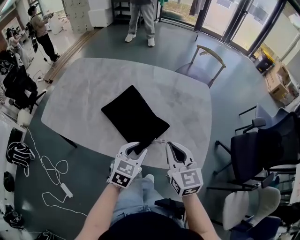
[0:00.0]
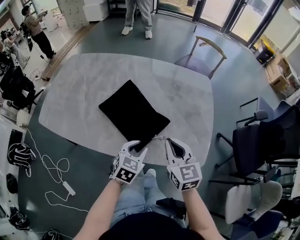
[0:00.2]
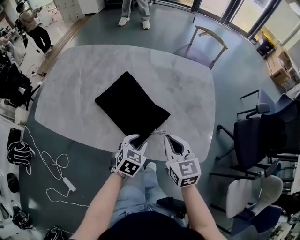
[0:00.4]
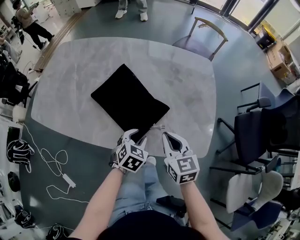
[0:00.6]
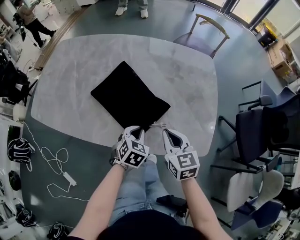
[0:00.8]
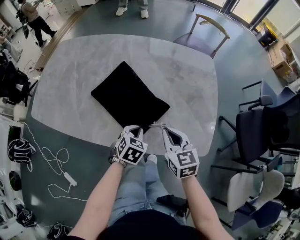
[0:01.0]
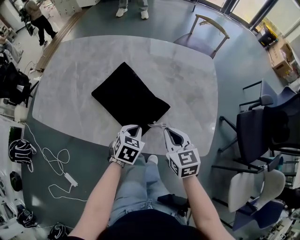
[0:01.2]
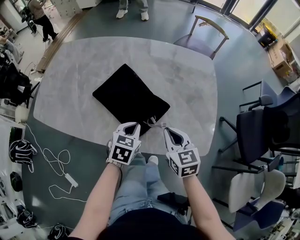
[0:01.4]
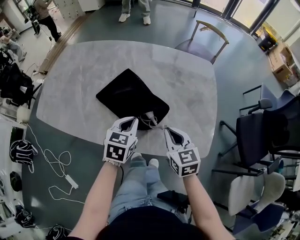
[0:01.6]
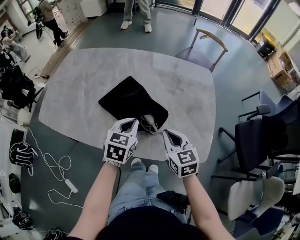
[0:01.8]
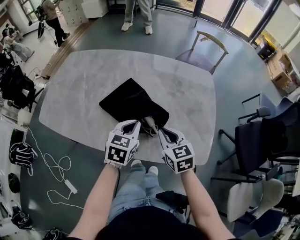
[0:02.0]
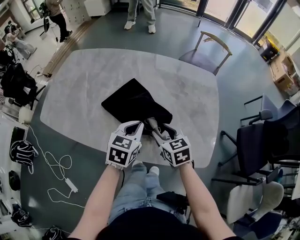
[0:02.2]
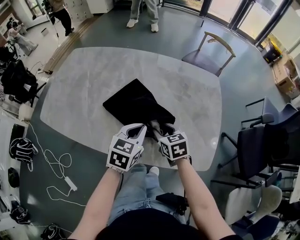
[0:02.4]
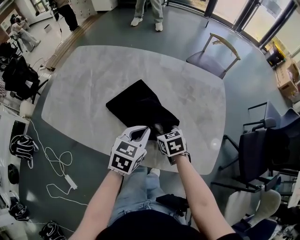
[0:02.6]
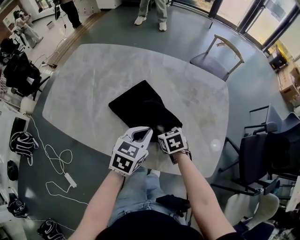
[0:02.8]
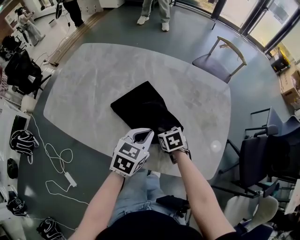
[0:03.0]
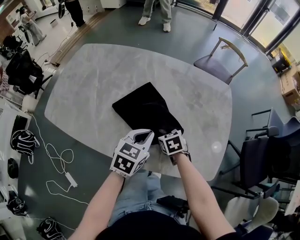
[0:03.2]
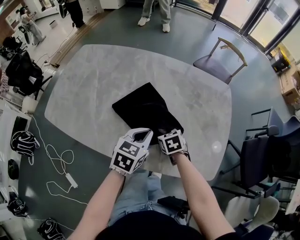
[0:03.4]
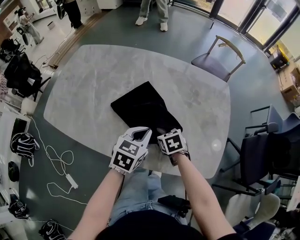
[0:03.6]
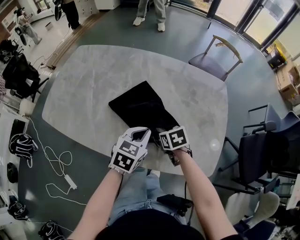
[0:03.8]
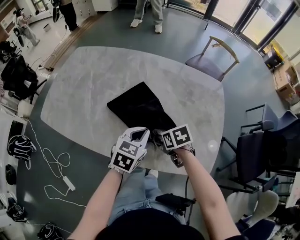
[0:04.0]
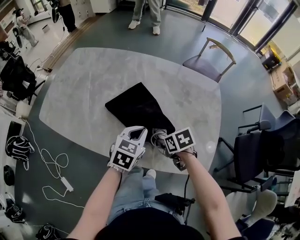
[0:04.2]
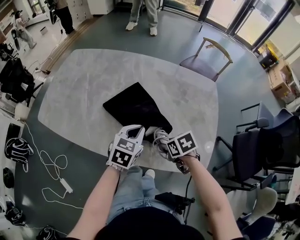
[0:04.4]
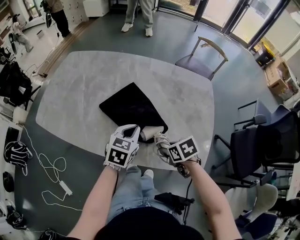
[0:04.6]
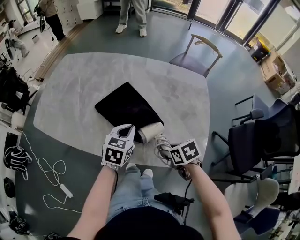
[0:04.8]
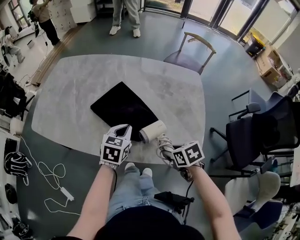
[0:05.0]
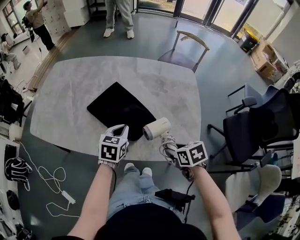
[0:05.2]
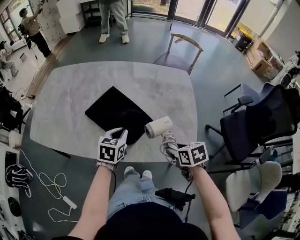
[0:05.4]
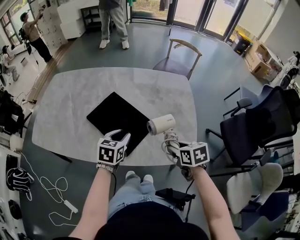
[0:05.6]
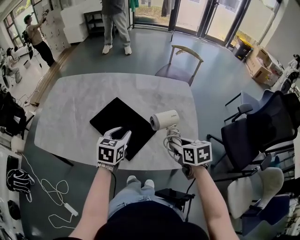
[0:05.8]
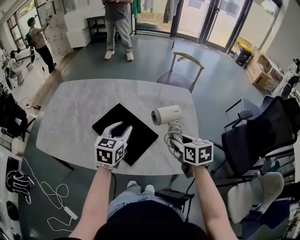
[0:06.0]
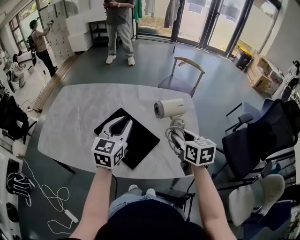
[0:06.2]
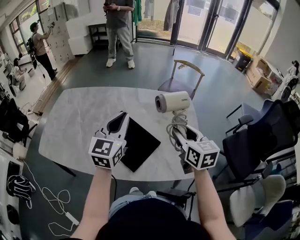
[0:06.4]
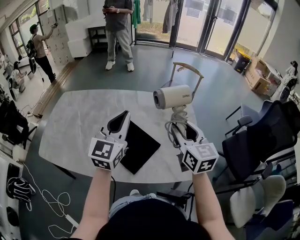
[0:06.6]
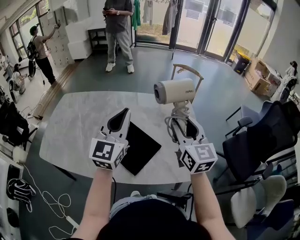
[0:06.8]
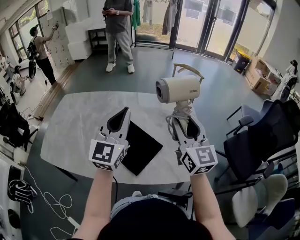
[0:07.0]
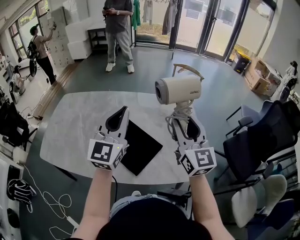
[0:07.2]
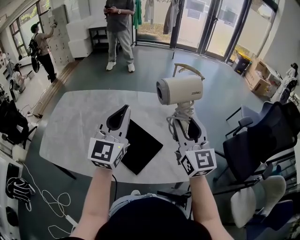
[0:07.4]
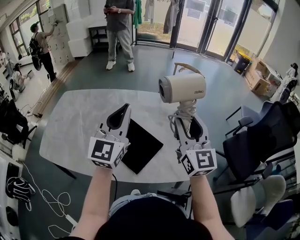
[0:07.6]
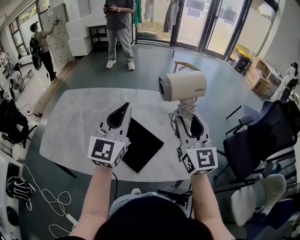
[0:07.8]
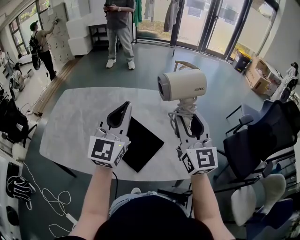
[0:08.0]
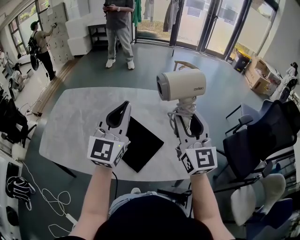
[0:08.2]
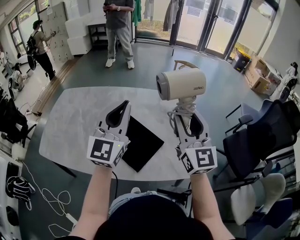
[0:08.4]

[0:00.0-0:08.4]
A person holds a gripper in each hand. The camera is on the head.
0:00.0 to 0:01.4: The left gripper travels downward by roughly 5 cm, and closes up. The right gripper shifts about 10 cm downward.
0:01.4 to 0:02.8: The left gripper shifts some 5 cm upward; the right gripper shifts approximately 15 cm forward, downward and to the left, turns by some 30 degrees, and opens up.
0:02.8 to 0:04.2: The right gripper heads backward, covering about 5 cm.
0:04.2 to 0:05.6: The right gripper moves to the right, backward and upward, roughly 15 cm, and swivels some 20 degrees; the left gripper opens.
0:05.6 to 0:07.0: The right gripper moves upward and forward, roughly 30 cm, and angles its fingers upward, by about 60 degrees, while the left gripper moves upward, some 30 cm, tilts its fingers roughly 50 degrees upward, and closes.
0:07.0 to 0:08.4: There are only small adjustments of the grippers.

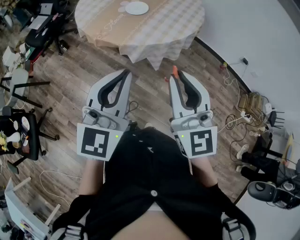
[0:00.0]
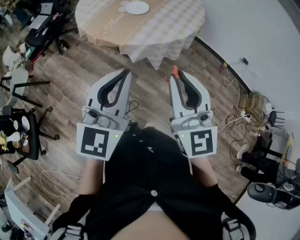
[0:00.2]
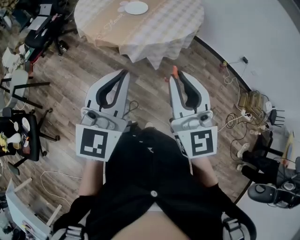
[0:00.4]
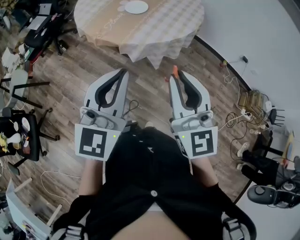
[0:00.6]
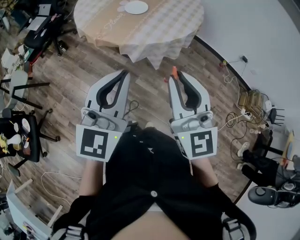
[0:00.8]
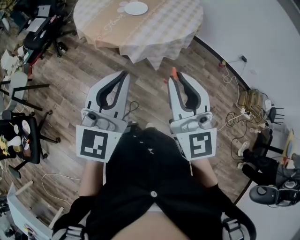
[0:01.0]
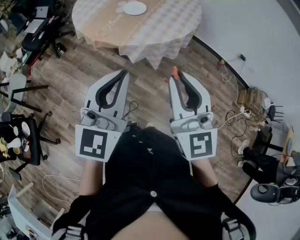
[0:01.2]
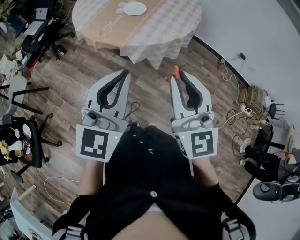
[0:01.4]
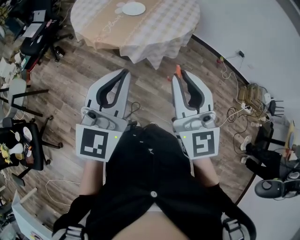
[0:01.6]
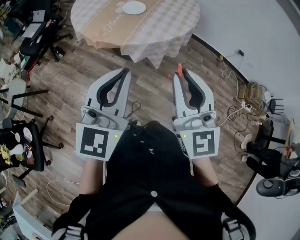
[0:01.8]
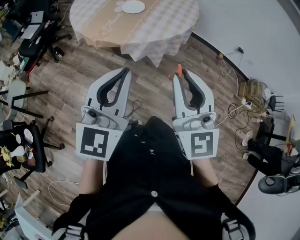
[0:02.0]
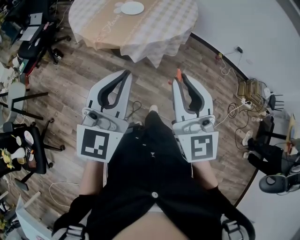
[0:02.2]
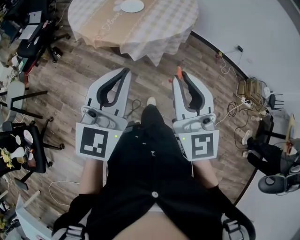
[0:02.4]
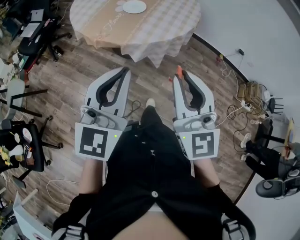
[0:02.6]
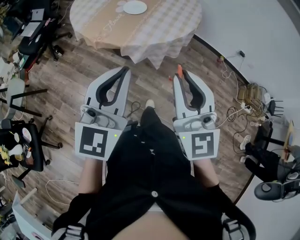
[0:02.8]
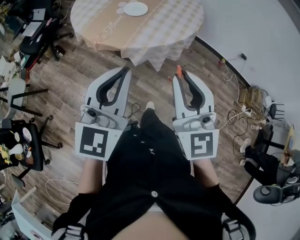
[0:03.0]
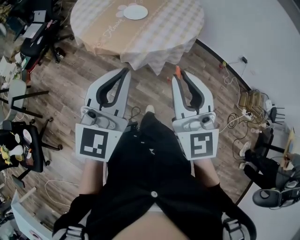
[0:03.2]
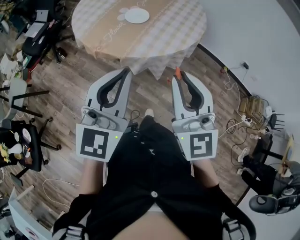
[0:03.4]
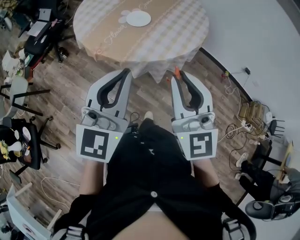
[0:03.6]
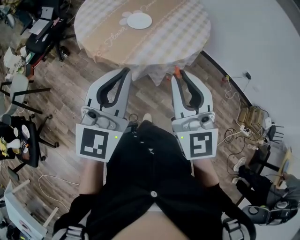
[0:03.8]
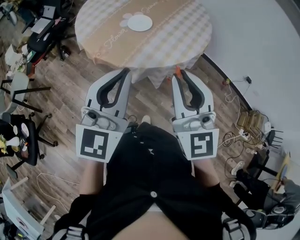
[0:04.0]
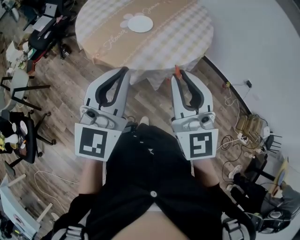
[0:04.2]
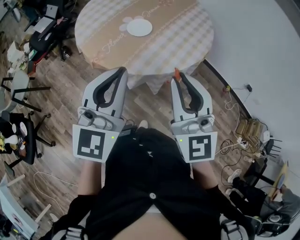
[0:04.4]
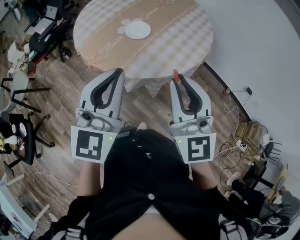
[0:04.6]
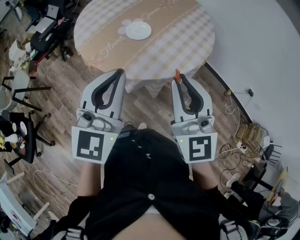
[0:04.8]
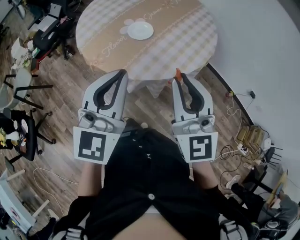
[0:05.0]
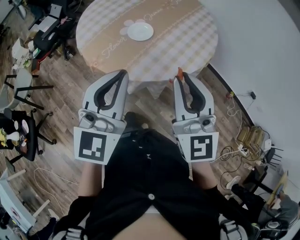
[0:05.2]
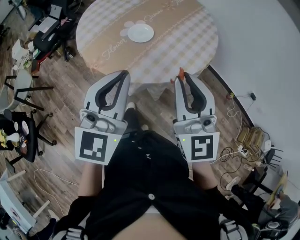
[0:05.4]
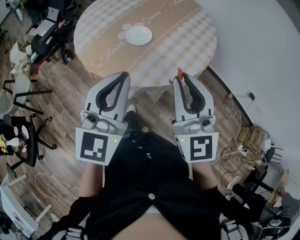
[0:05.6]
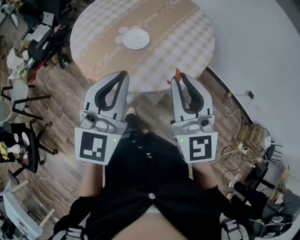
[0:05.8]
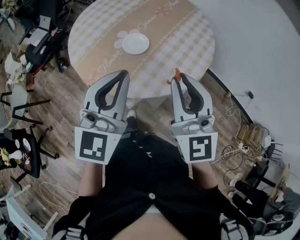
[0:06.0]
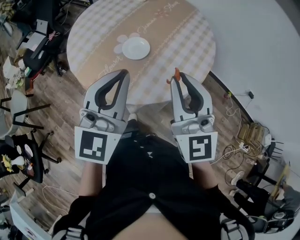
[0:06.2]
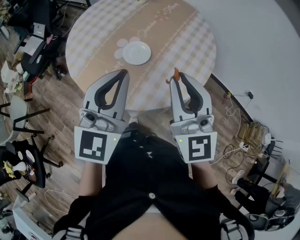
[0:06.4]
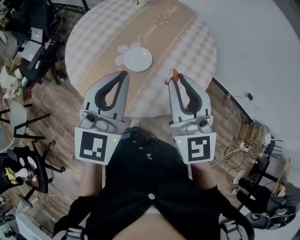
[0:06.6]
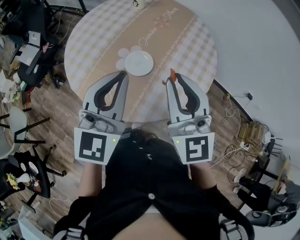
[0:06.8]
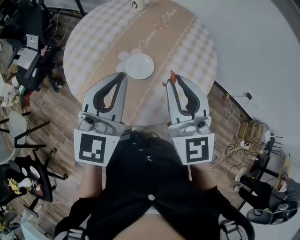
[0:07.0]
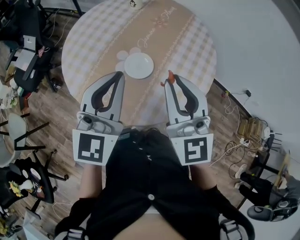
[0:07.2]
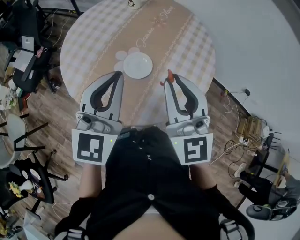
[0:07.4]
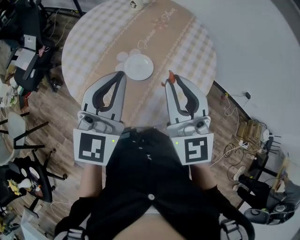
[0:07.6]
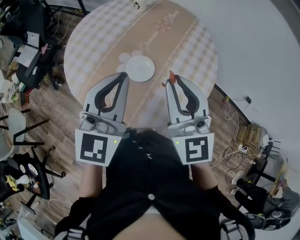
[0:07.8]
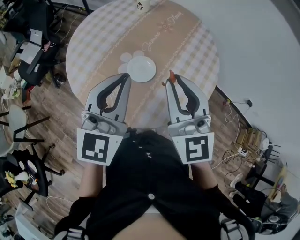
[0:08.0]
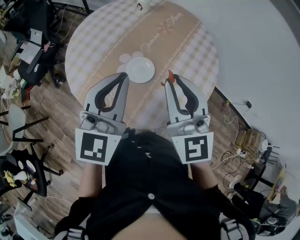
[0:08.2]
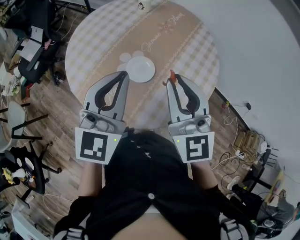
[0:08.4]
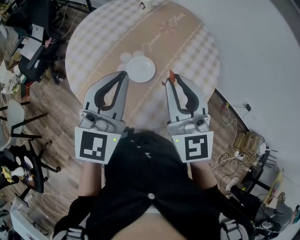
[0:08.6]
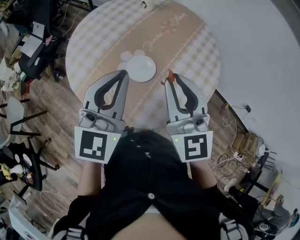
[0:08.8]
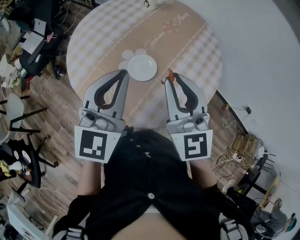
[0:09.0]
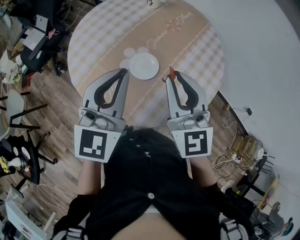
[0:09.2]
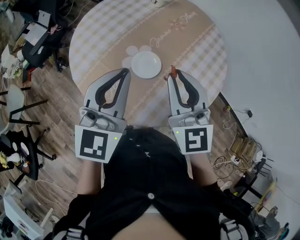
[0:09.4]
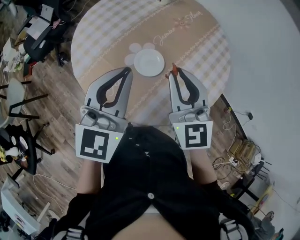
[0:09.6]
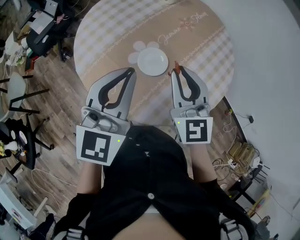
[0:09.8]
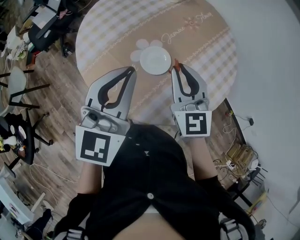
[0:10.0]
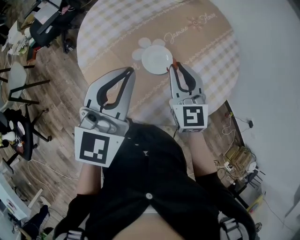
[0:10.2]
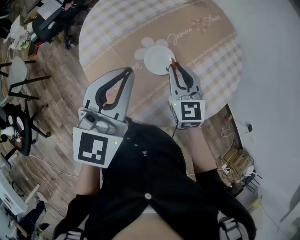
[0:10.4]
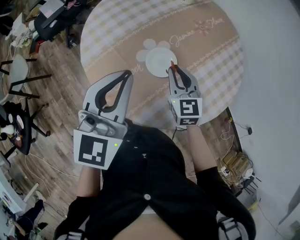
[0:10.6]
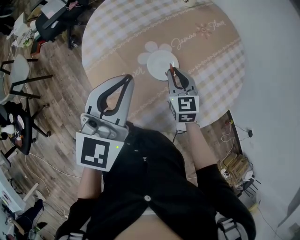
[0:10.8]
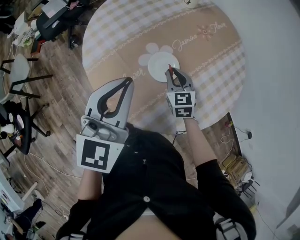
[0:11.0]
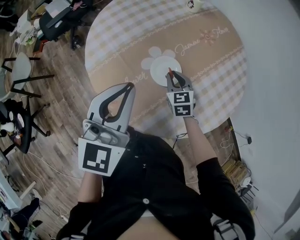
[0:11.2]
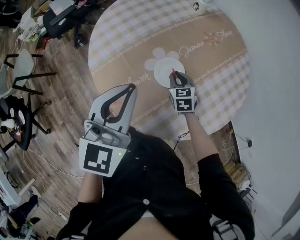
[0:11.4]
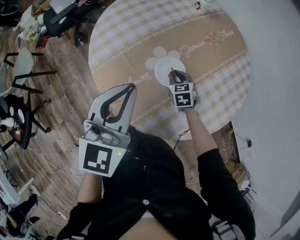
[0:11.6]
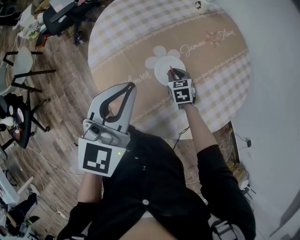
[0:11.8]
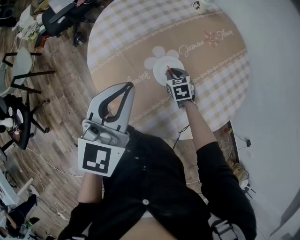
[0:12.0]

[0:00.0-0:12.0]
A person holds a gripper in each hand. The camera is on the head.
0:00.0 to 0:03.0: The grippers move only a little.
0:03.0 to 0:04.4: The left gripper travels forward and to the right by about 15 cm; the right gripper is displaced forward by about 15 cm.
0:04.4 to 0:06.0: Both grippers travel together forward, roughly 10 cm.
0:06.0 to 0:07.6: Both grippers travel together forward and to the left, some 15 cm.
0:07.6 to 0:09.0: There are only small adjustments of the grippers.
0:09.0 to 0:10.4: The right gripper shifts roughly 20 cm downward and forward.
0:10.4 to 0:12.0: The right gripper goes about 20 cm downward, and points its fingers about 30 degrees further downward.

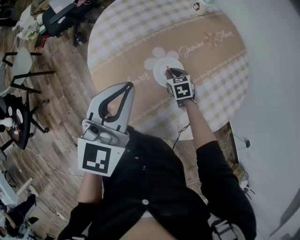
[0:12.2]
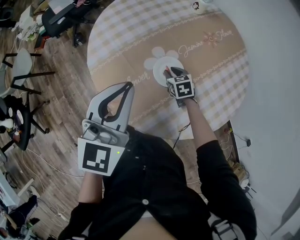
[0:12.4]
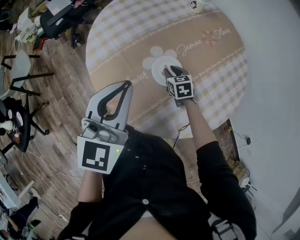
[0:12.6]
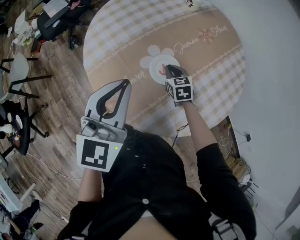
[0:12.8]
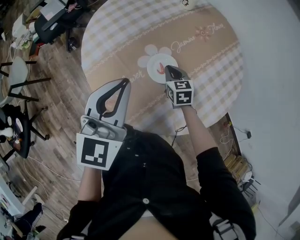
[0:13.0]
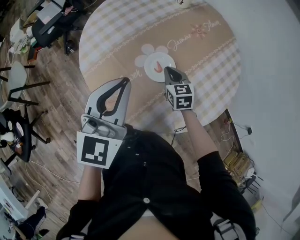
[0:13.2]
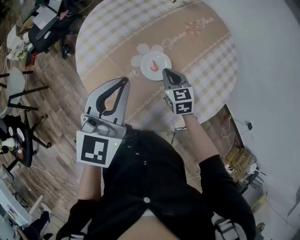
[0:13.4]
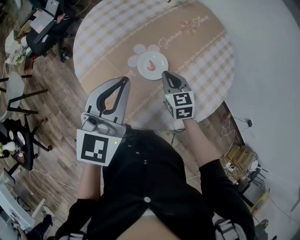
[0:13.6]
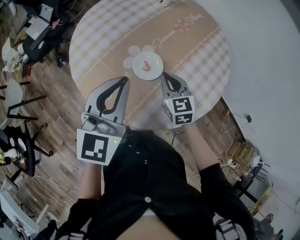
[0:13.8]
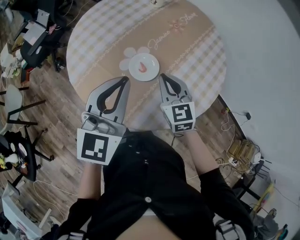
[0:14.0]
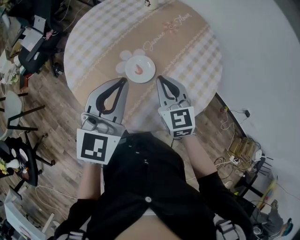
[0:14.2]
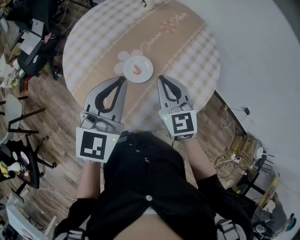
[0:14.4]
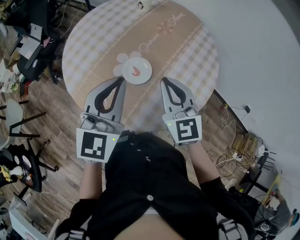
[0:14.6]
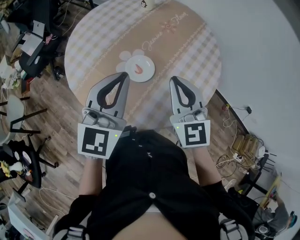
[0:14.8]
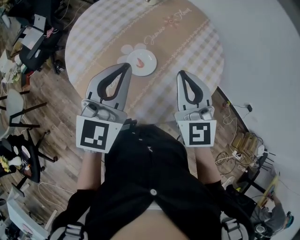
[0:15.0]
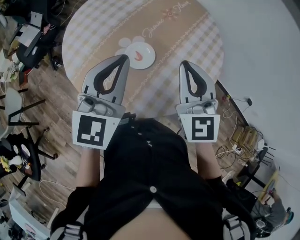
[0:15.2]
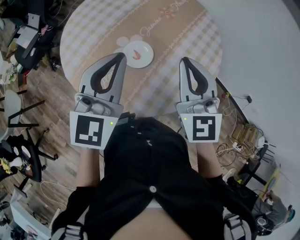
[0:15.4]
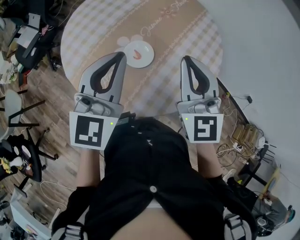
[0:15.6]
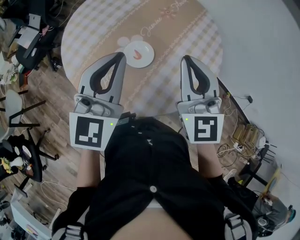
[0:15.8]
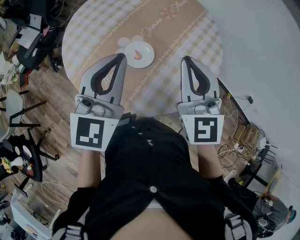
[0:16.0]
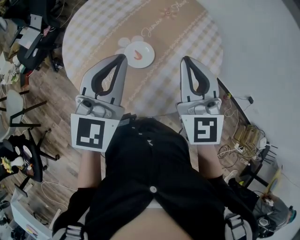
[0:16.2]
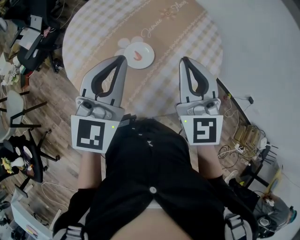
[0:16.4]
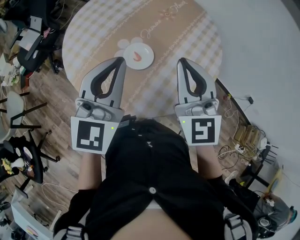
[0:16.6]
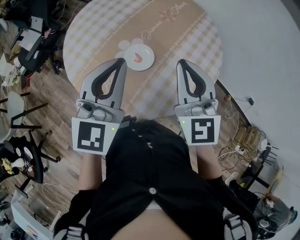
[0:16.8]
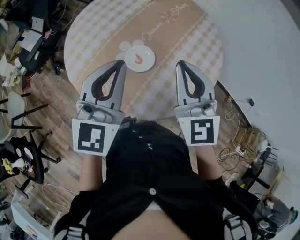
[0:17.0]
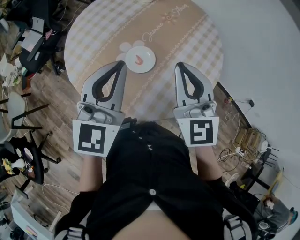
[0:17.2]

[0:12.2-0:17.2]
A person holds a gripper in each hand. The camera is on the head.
0:12.2 to 0:13.8: The right gripper moves upward and backward, roughly 20 cm, and swivels some 30 degrees, while the left gripper shifts by approximately 5 cm.
0:13.8 to 0:15.6: The right gripper travels upward by about 20 cm, and changes its angle by about 30 degrees.
0:15.6 to 0:17.2: The two grippers keep their place.
